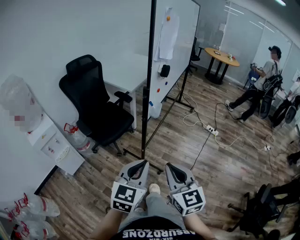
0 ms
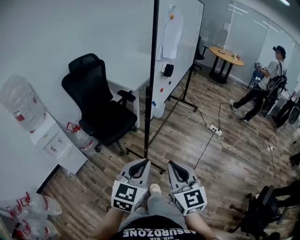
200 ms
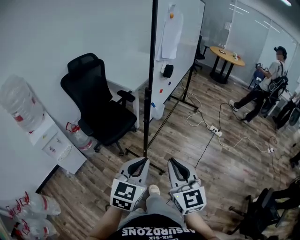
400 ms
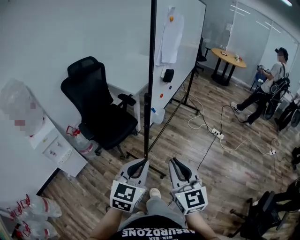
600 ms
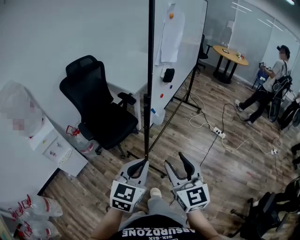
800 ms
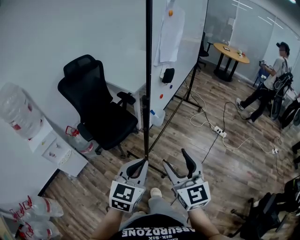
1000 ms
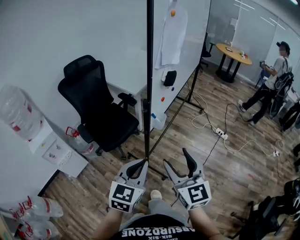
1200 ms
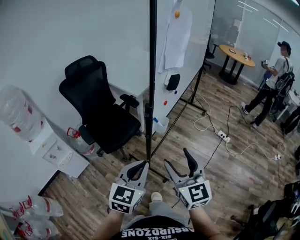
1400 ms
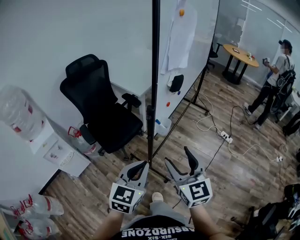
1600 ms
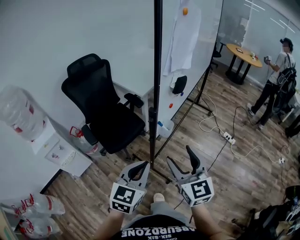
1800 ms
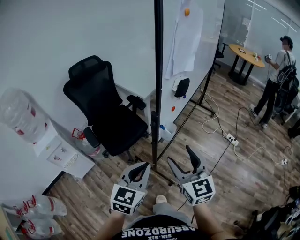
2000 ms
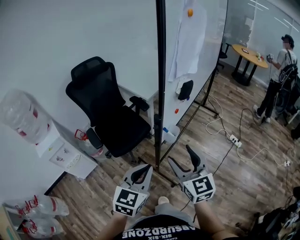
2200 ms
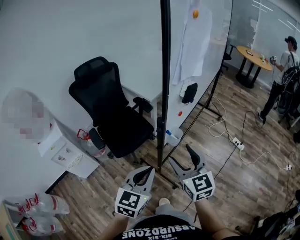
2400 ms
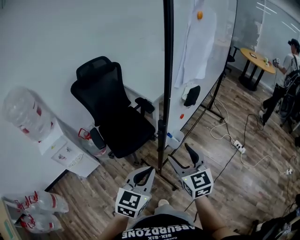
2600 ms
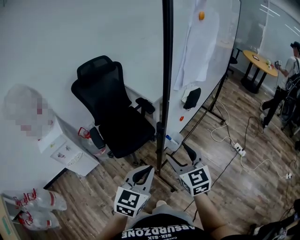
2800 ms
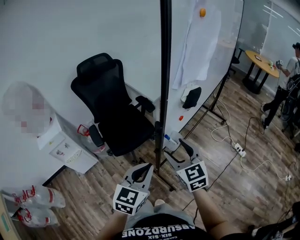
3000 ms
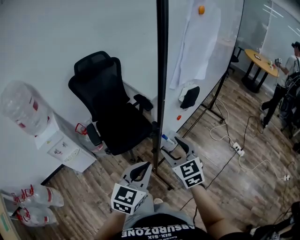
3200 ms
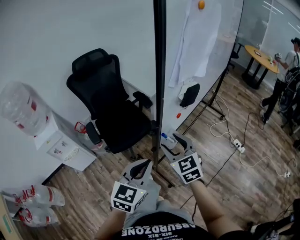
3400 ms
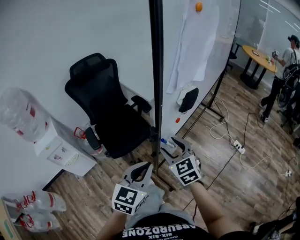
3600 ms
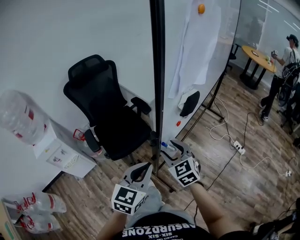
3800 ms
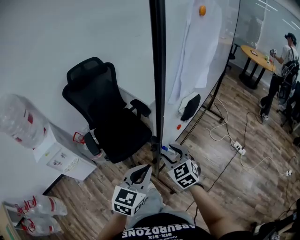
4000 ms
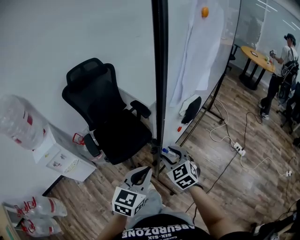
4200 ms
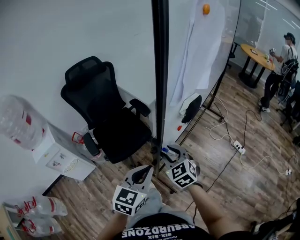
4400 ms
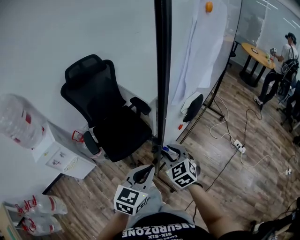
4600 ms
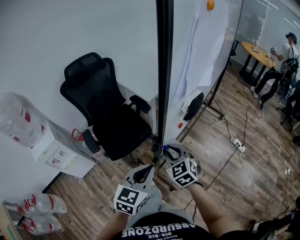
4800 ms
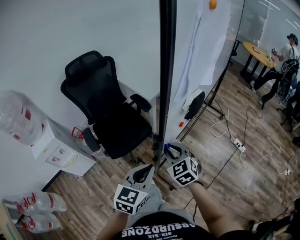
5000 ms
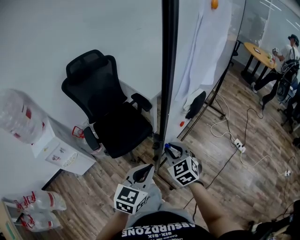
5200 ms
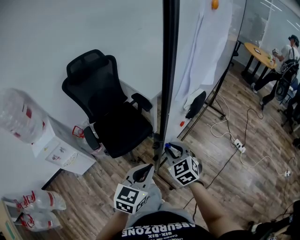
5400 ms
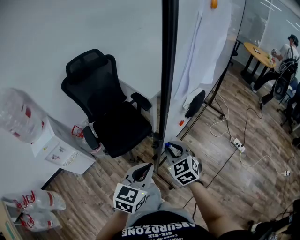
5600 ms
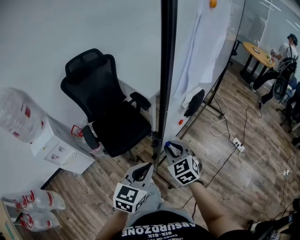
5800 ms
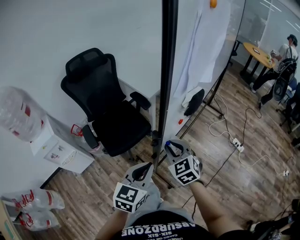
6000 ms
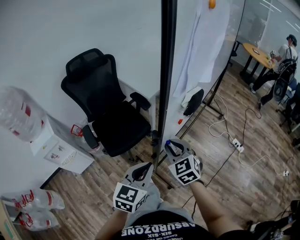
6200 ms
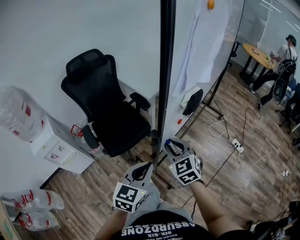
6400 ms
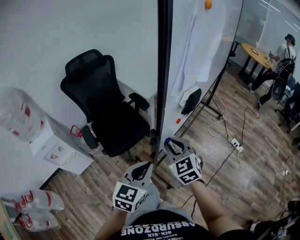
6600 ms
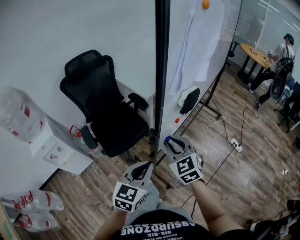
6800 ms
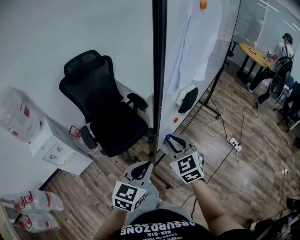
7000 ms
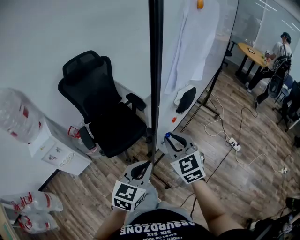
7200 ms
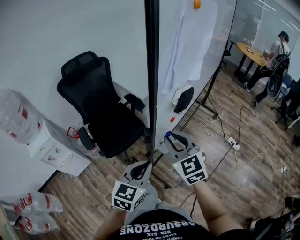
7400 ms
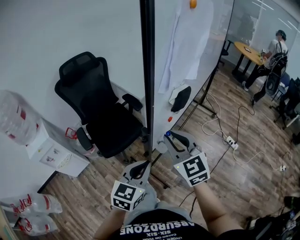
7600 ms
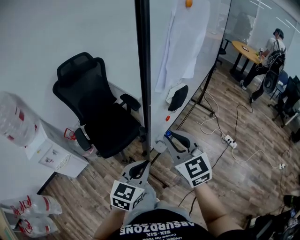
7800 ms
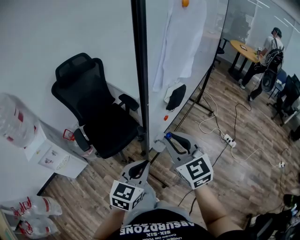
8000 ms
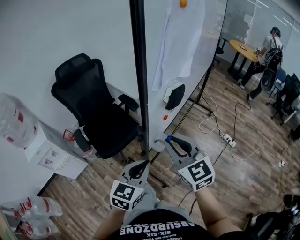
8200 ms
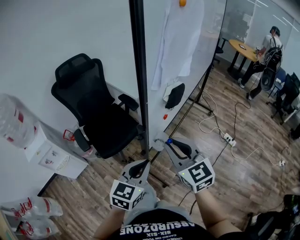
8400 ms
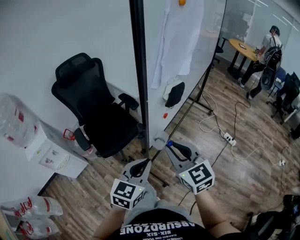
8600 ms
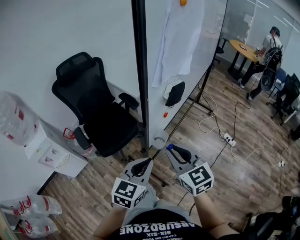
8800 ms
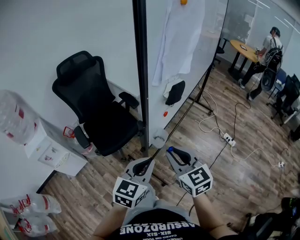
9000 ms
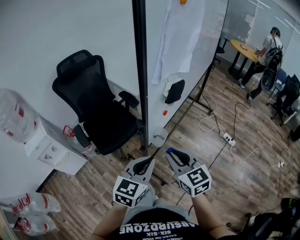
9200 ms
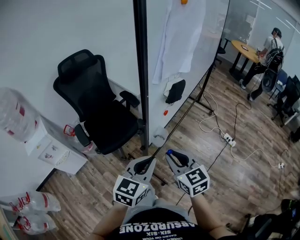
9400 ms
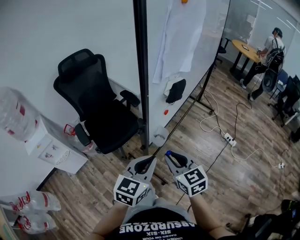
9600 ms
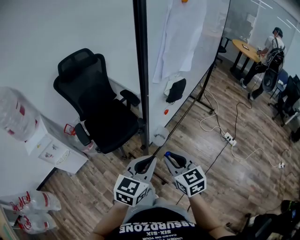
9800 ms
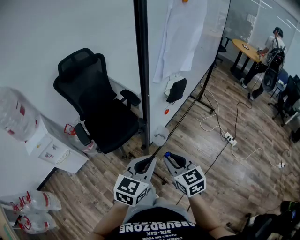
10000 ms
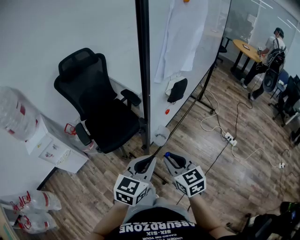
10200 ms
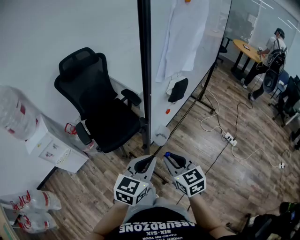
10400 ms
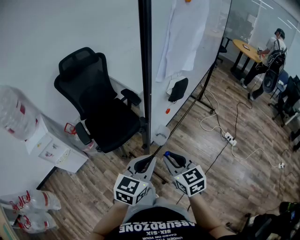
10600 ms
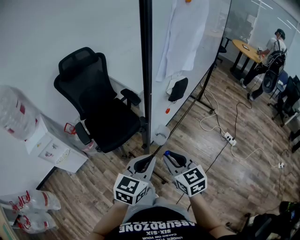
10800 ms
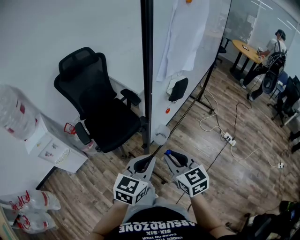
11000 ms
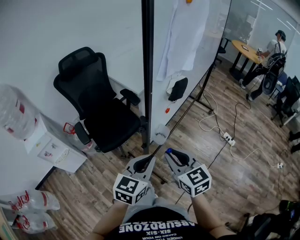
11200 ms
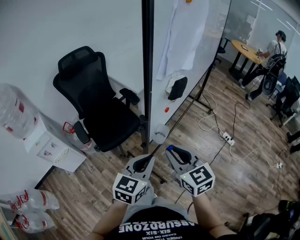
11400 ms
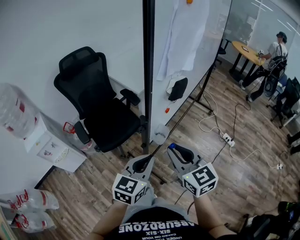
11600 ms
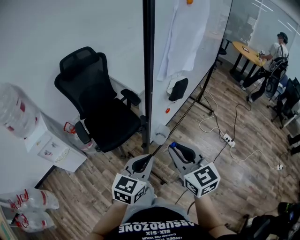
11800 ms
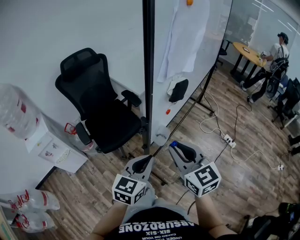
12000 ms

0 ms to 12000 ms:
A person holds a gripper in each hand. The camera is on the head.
0 ms to 1600 ms: Both grippers move forward, roughly 20 cm. The right gripper opens its fingers.
1600 ms to 3000 ms: The left gripper is displaced forward by about 10 cm. The right gripper travels forward by approximately 15 cm.
3000 ms to 4400 ms: The left gripper heads forward, covering approximately 5 cm. Meanwhile the right gripper moves downward and forward, some 10 cm, and closes.
4400 ms to 6000 ms: The grippers move only a little.
6000 ms to 7600 ms: The right gripper moves upward, some 10 cm.
7600 ms to 9000 ms: The right gripper moves backward and downward, approximately 10 cm.
9000 ms to 10400 ms: The right gripper travels downward by about 5 cm.
10400 ms to 12000 ms: The right gripper moves upward, approximately 10 cm.

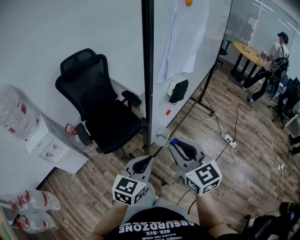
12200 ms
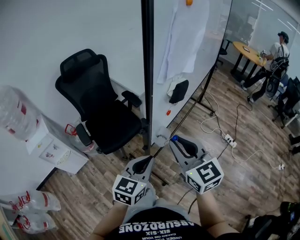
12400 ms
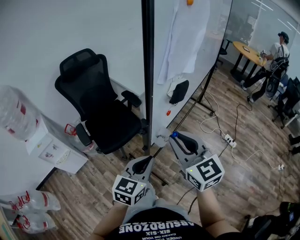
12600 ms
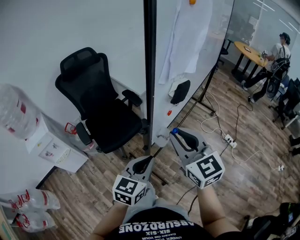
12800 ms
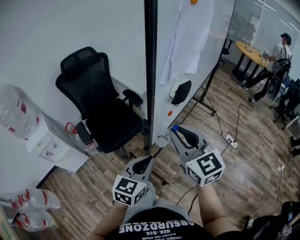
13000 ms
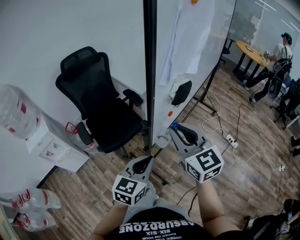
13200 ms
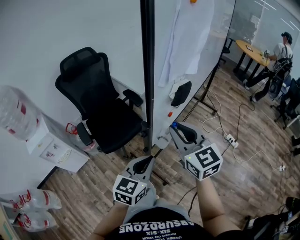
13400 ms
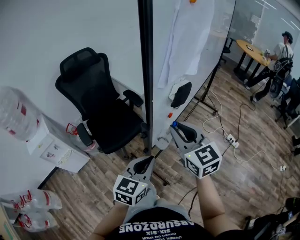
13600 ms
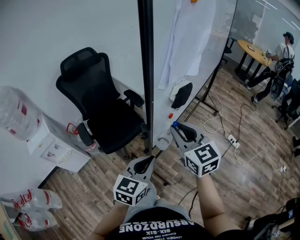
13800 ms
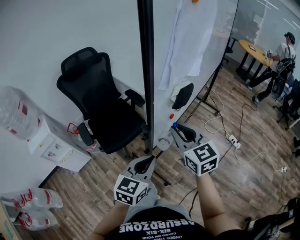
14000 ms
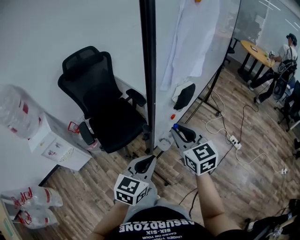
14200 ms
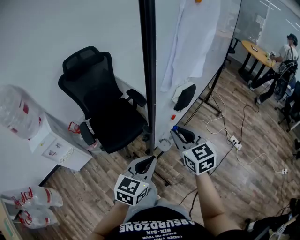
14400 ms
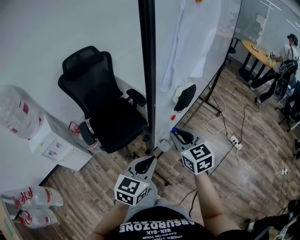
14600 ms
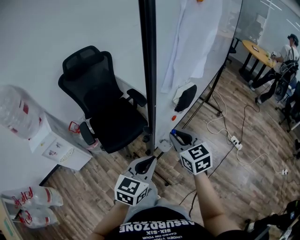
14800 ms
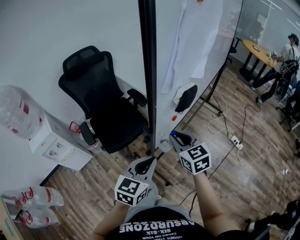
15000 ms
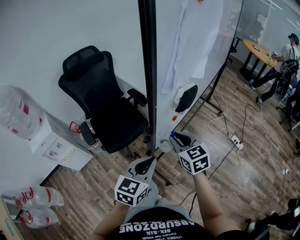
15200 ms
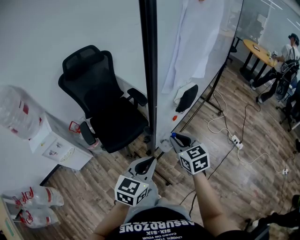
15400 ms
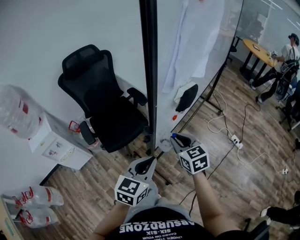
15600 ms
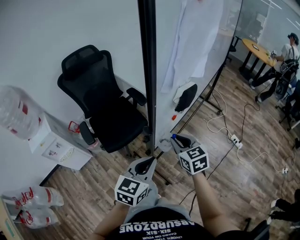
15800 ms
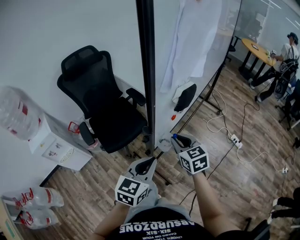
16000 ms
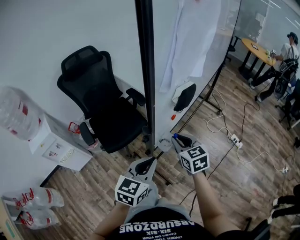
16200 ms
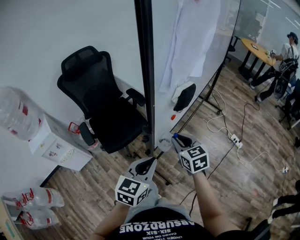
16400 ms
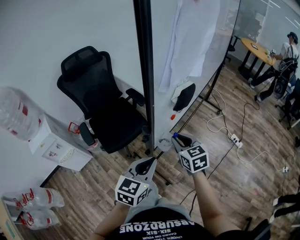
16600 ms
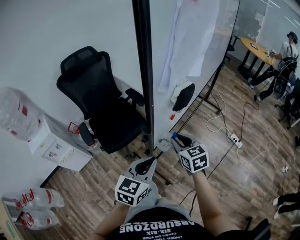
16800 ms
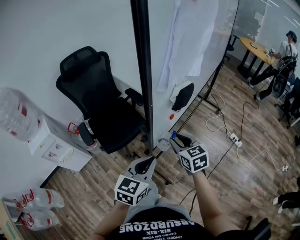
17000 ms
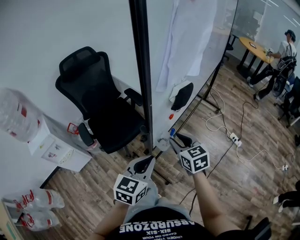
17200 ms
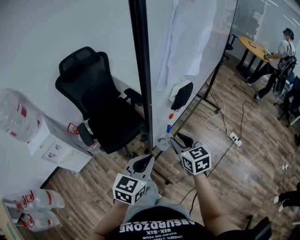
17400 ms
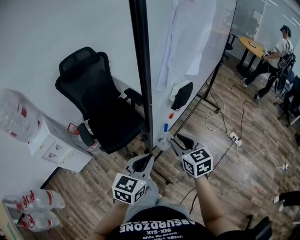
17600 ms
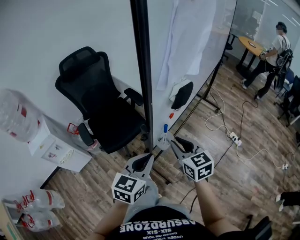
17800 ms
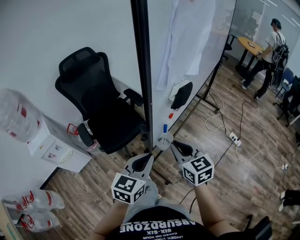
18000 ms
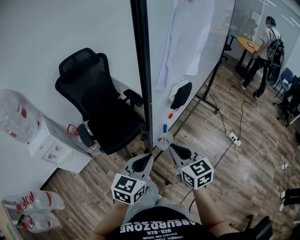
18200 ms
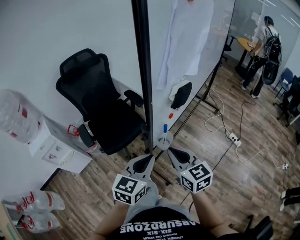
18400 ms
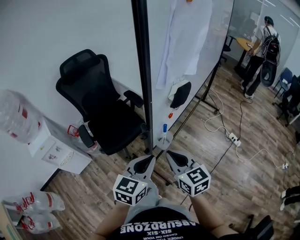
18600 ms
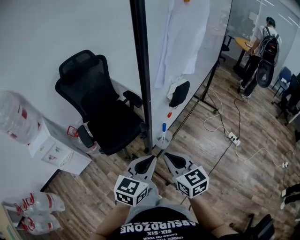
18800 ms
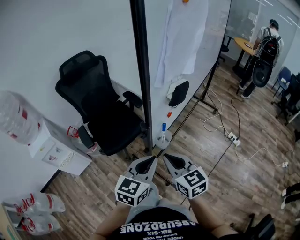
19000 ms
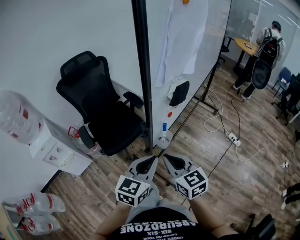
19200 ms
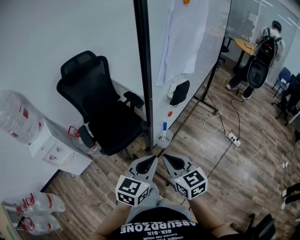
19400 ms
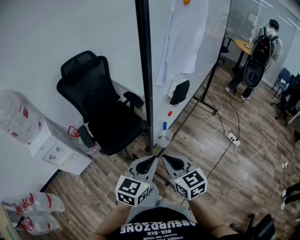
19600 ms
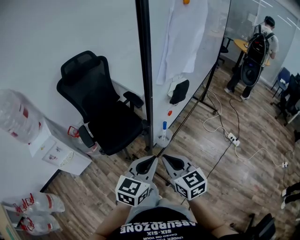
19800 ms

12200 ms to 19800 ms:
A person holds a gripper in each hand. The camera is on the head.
12200 ms to 13800 ms: The right gripper is displaced forward by some 10 cm.
13800 ms to 15200 ms: The right gripper goes some 10 cm downward.
15200 ms to 16800 ms: The grippers move only a little.
16800 ms to 18200 ms: The right gripper heads backward and upward, covering about 10 cm.
18200 ms to 19800 ms: The right gripper heads backward, covering approximately 5 cm.

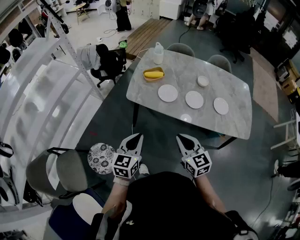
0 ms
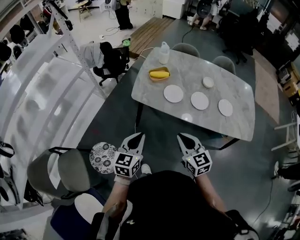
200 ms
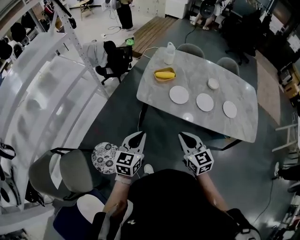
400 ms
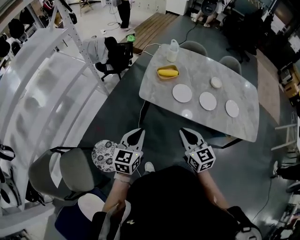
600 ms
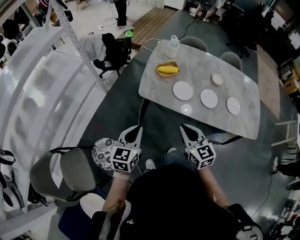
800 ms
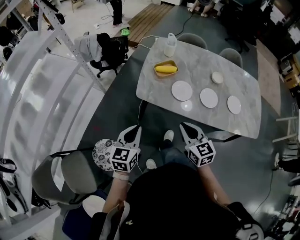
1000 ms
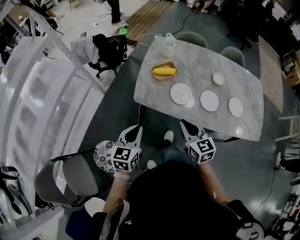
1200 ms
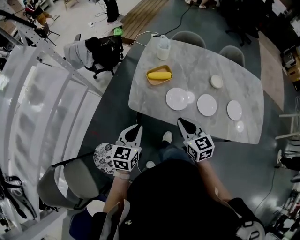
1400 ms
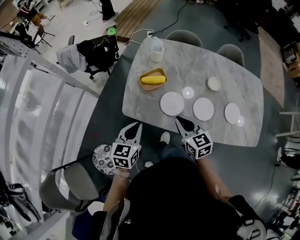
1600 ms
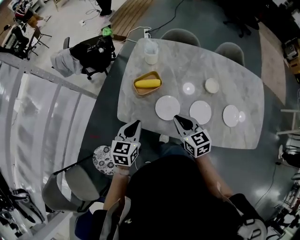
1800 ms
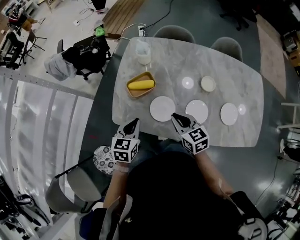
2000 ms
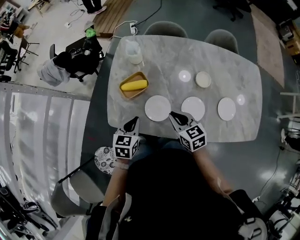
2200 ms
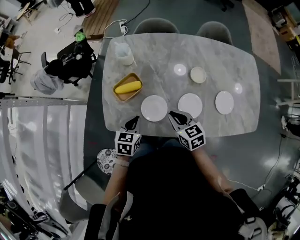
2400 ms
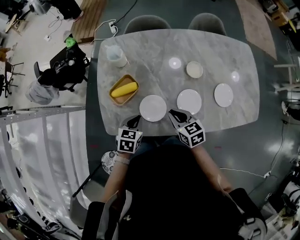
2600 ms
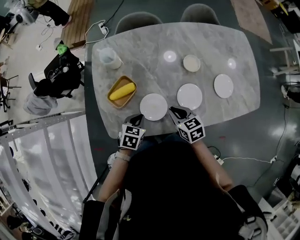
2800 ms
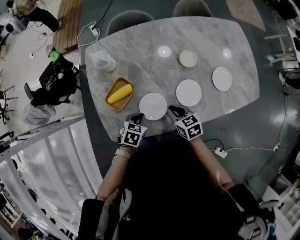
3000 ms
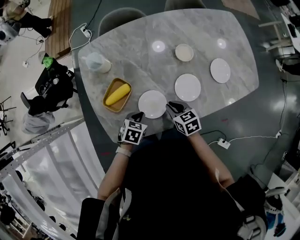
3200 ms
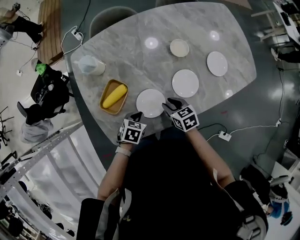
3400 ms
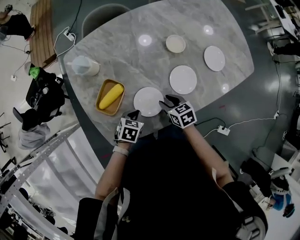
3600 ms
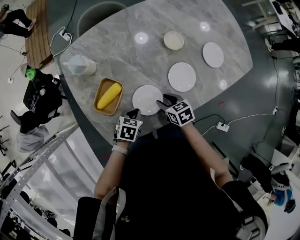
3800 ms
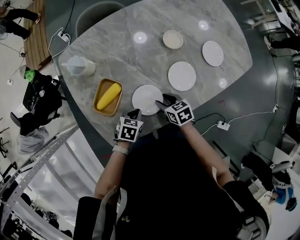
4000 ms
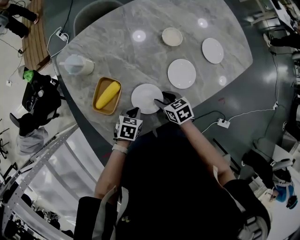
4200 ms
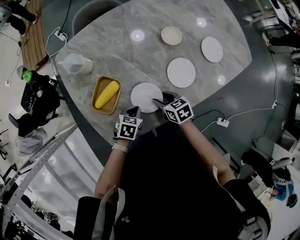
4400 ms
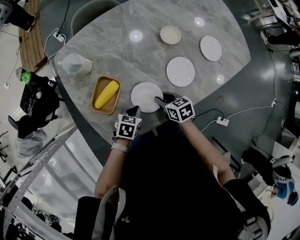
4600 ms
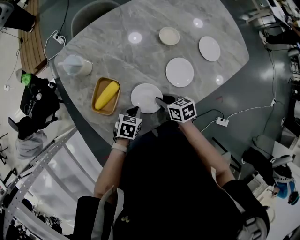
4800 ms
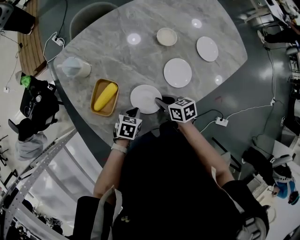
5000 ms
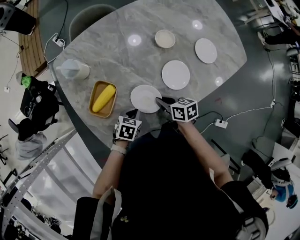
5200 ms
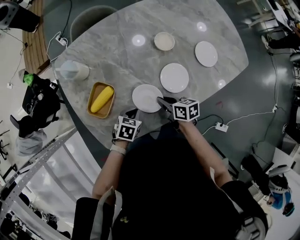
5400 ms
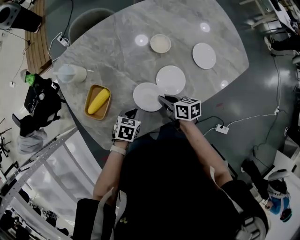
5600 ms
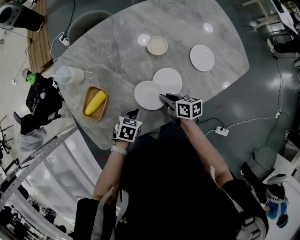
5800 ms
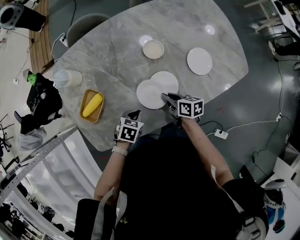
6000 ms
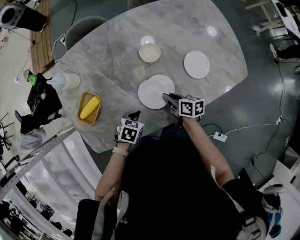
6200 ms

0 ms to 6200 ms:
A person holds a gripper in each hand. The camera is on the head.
0 ms to 1600 ms: Both grippers travel together forward, roughly 30 cm.
1600 ms to 3200 ms: The grippers both shift downward by approximately 20 cm. The right gripper rotates some 40 degrees; the left gripper points its fingers some 30 degrees further downward.
3200 ms to 4600 ms: The grippers both shift downward by approximately 5 cm.
4600 ms to 6200 ms: The right gripper travels to the right and forward by some 20 cm, and rotates approximately 20 degrees. The left gripper is displaced to the right by some 15 cm.
